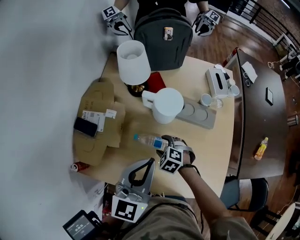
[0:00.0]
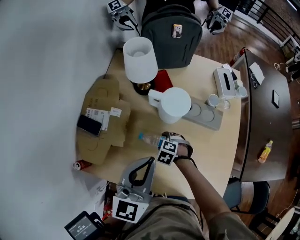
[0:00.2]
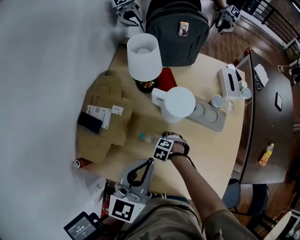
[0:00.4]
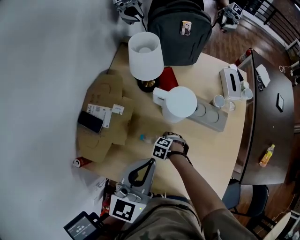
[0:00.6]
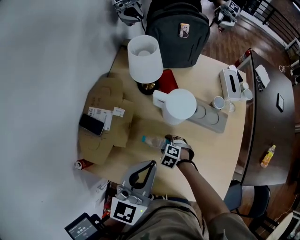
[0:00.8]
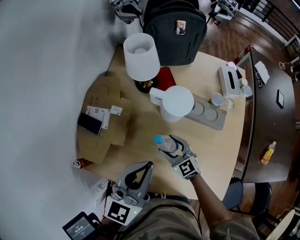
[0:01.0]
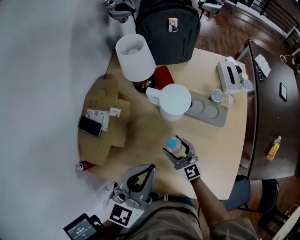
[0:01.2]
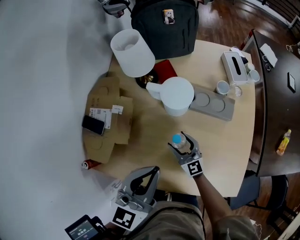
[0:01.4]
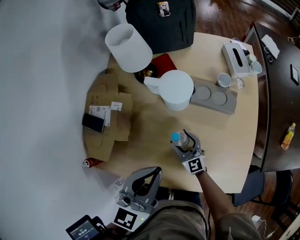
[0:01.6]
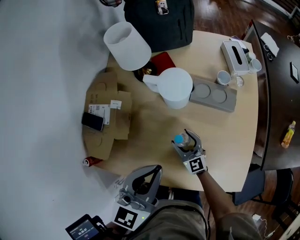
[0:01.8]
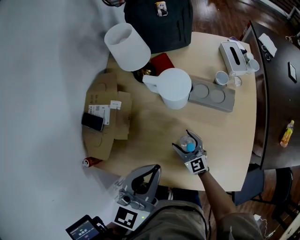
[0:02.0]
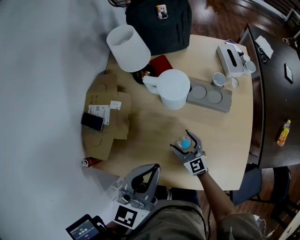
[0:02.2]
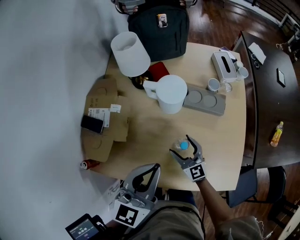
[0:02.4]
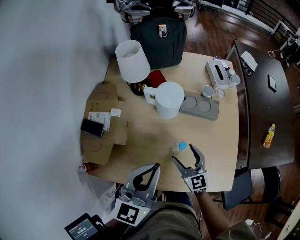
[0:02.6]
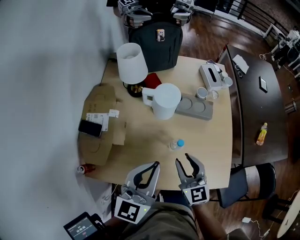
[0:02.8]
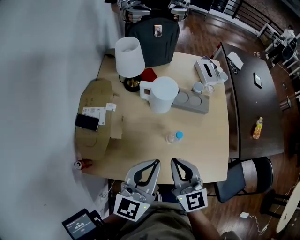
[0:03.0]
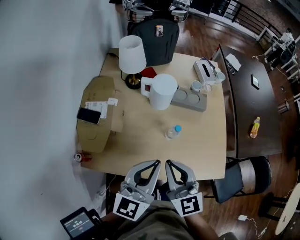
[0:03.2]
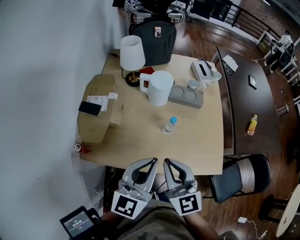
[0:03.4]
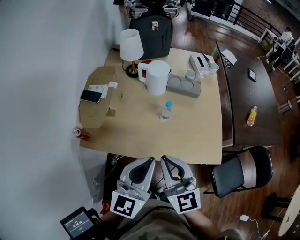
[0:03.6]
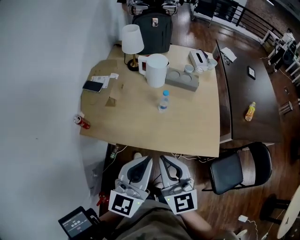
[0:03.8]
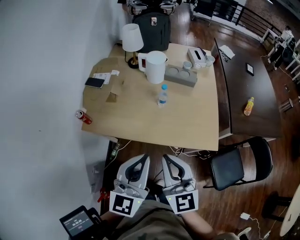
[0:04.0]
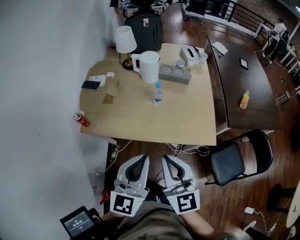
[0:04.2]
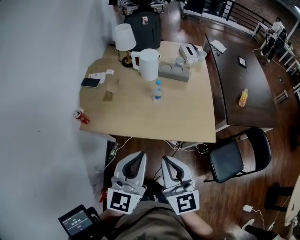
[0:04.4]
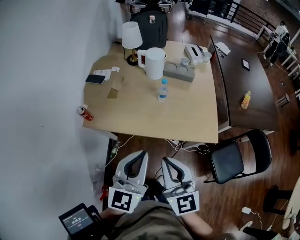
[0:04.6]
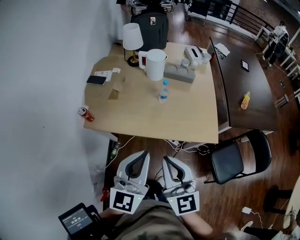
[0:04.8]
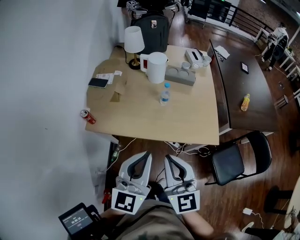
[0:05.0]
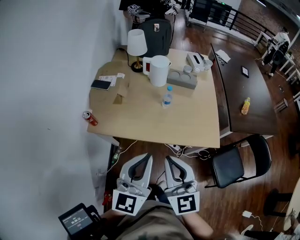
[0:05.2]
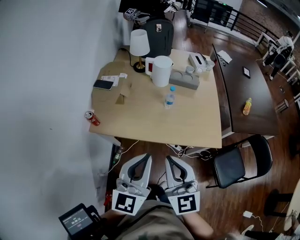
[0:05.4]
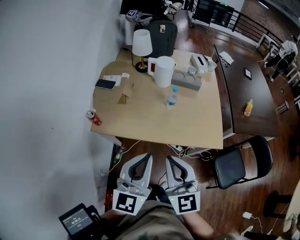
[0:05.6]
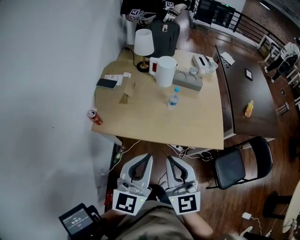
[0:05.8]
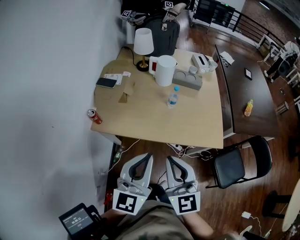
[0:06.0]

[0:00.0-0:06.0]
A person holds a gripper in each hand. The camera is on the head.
0:00.0 to 0:01.6: The right gripper goes up and down, roughly 20 cm each way, reversing 2 times, and tilts its fingers about 50 degrees upward.
0:01.6 to 0:03.0: The right gripper is displaced upward and backward by some 30 cm, and closes; the left gripper shifts about 5 cm backward.
0:03.0 to 0:04.4: Both grippers travel together backward, about 30 cm.
0:04.4 to 0:06.0: The grippers both shift to the left by about 10 cm.

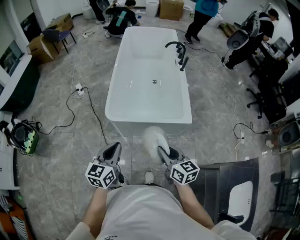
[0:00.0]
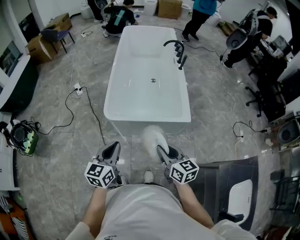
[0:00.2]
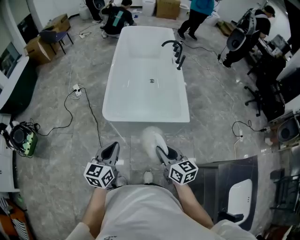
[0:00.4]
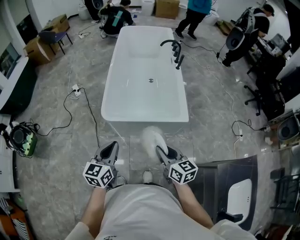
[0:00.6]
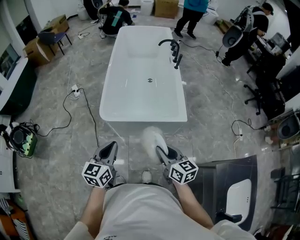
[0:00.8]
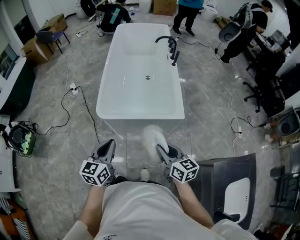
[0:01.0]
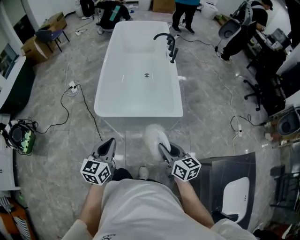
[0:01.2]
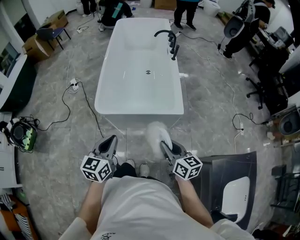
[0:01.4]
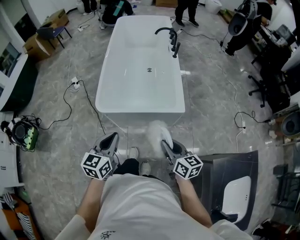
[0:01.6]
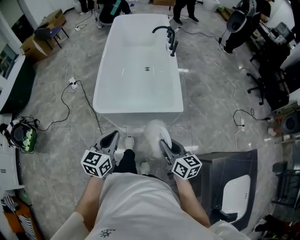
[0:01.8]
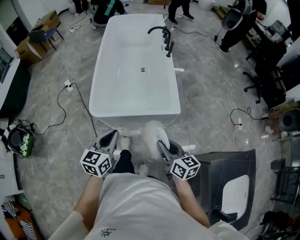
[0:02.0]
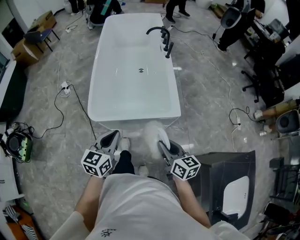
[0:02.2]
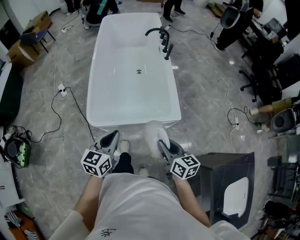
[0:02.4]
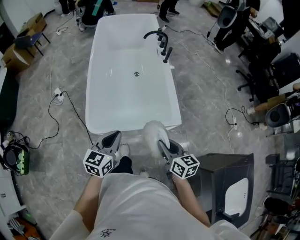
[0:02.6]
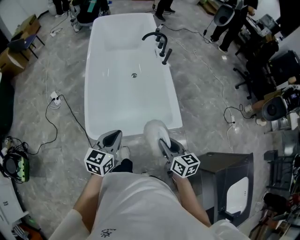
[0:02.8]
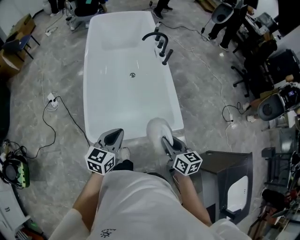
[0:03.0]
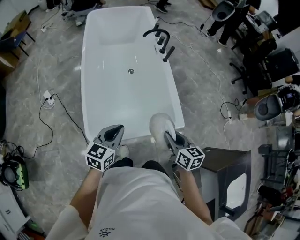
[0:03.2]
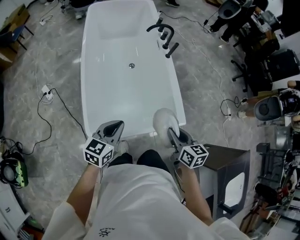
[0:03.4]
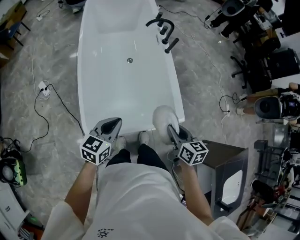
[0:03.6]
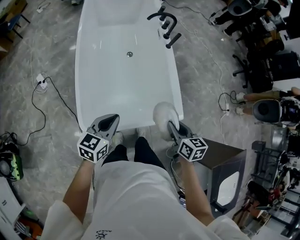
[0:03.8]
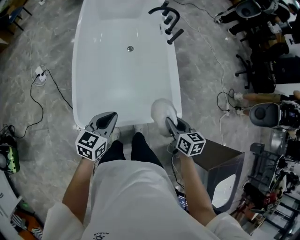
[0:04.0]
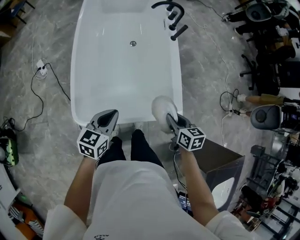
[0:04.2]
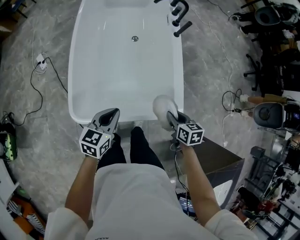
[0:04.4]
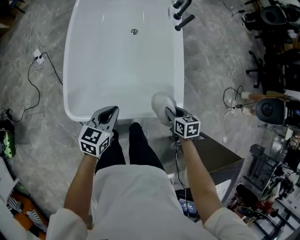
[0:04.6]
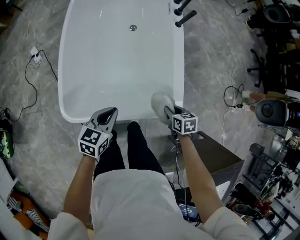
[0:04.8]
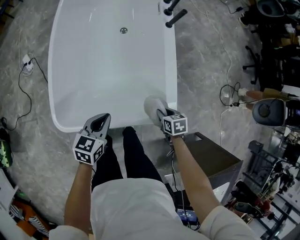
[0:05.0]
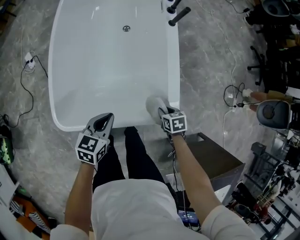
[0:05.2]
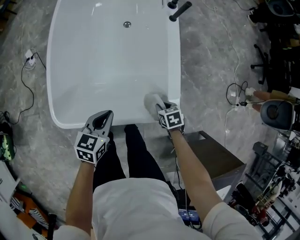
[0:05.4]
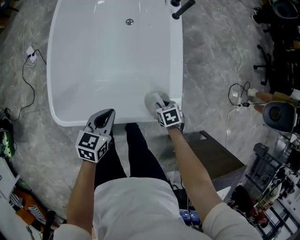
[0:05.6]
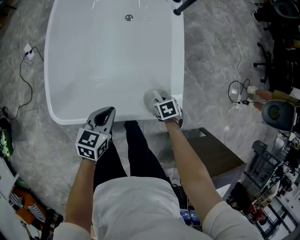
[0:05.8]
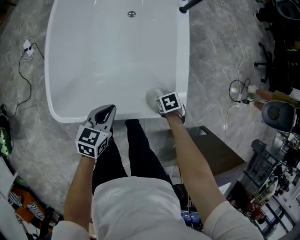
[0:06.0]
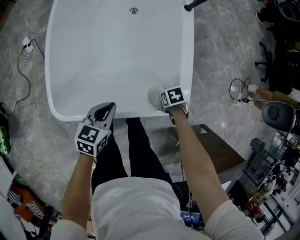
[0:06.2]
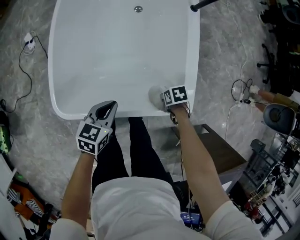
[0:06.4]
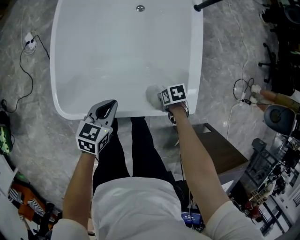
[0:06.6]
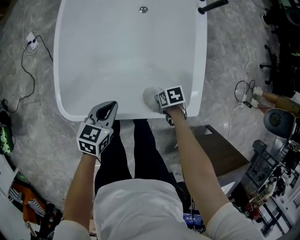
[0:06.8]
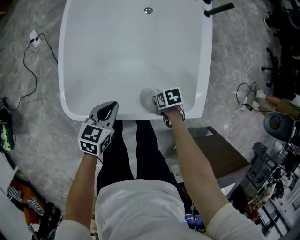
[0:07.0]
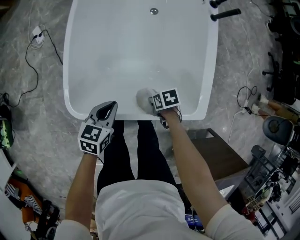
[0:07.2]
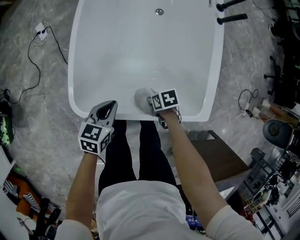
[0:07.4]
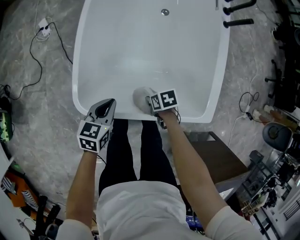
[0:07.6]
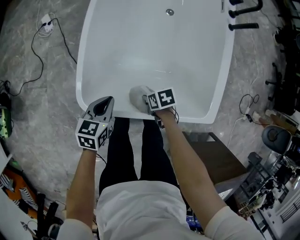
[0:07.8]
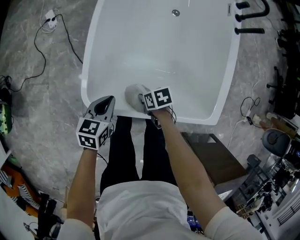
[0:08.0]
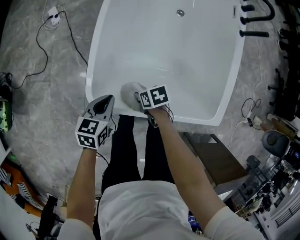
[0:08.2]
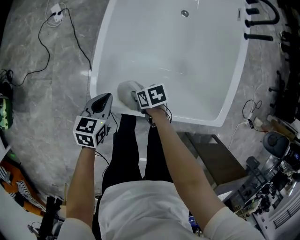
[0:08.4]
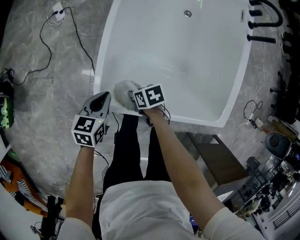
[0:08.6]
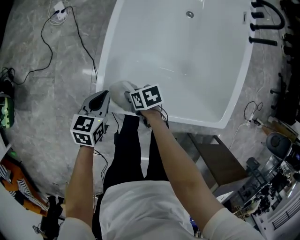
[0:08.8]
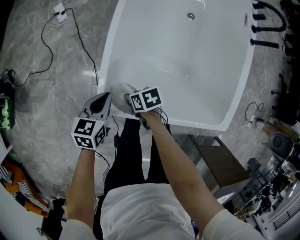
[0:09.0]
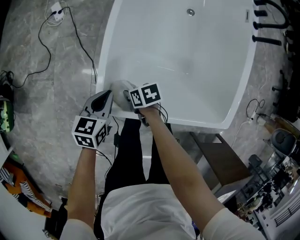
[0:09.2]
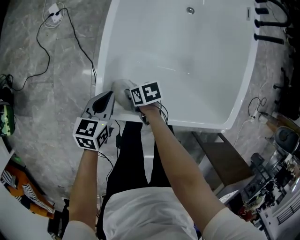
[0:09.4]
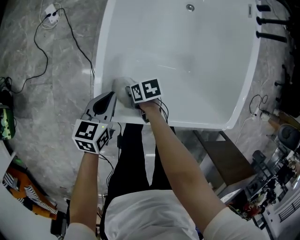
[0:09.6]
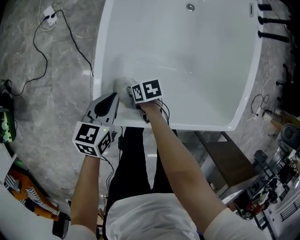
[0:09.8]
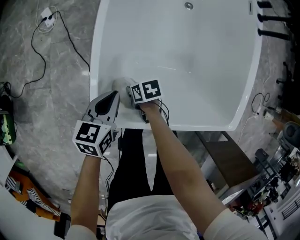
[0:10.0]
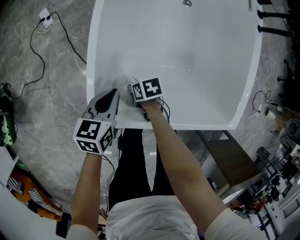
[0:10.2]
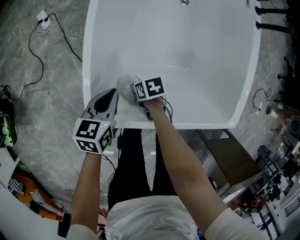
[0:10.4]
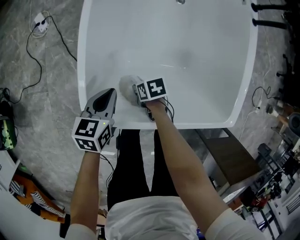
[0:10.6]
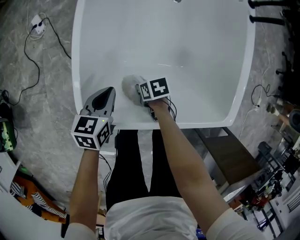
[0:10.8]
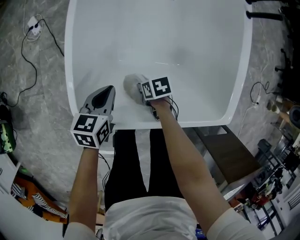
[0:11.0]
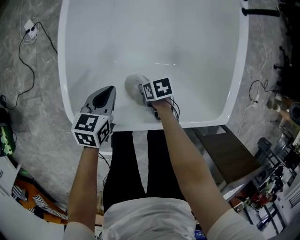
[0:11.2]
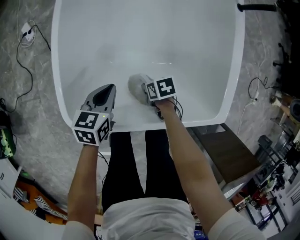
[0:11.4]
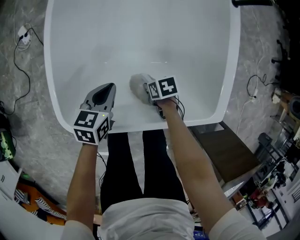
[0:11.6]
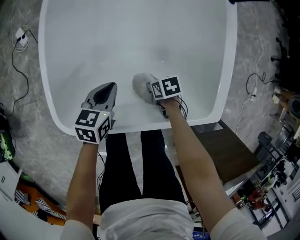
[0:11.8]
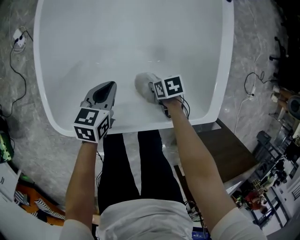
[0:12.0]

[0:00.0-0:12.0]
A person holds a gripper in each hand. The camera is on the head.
0:00.0 to 0:01.6: The left gripper ends up about 10 cm from where it was.
0:01.6 to 0:03.0: The left gripper changes place by approximately 25 cm.
0:03.0 to 0:04.4: The left gripper travels downward by some 10 cm.
0:04.4 to 0:06.0: The left gripper travels downward by about 15 cm.
0:06.0 to 0:07.6: The left gripper ends up roughly 20 cm from where it was.
0:07.6 to 0:09.0: The left gripper moves about 15 cm.
0:09.0 to 0:10.4: The left gripper changes place by about 10 cm.
0:10.4 to 0:12.0: The left gripper ends up some 20 cm from where it was.

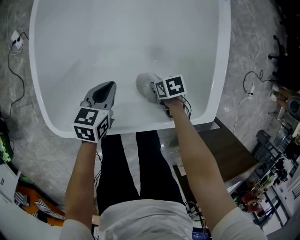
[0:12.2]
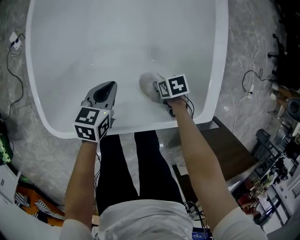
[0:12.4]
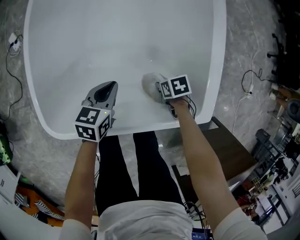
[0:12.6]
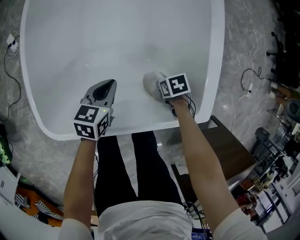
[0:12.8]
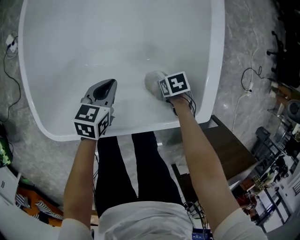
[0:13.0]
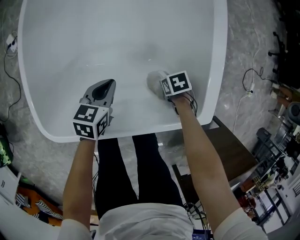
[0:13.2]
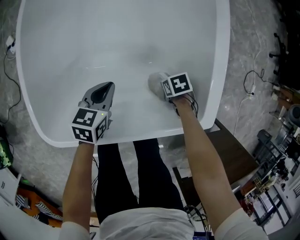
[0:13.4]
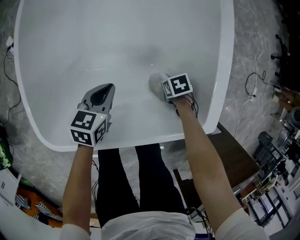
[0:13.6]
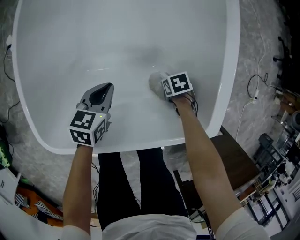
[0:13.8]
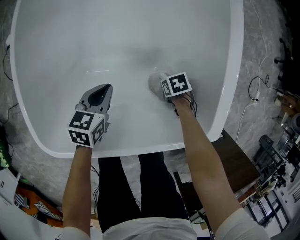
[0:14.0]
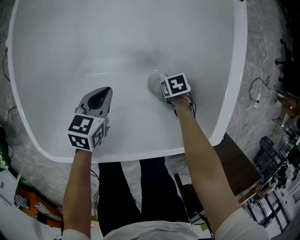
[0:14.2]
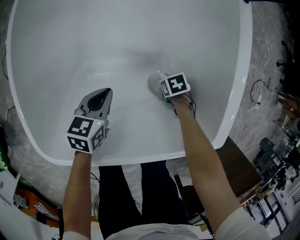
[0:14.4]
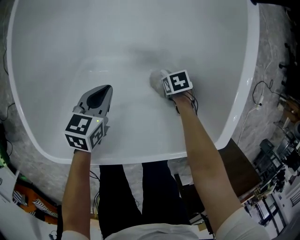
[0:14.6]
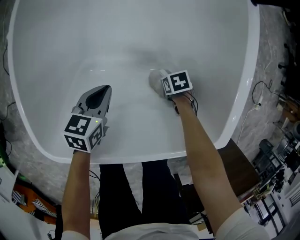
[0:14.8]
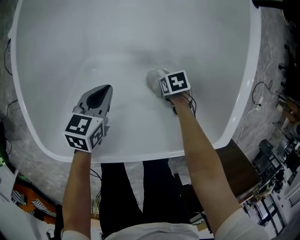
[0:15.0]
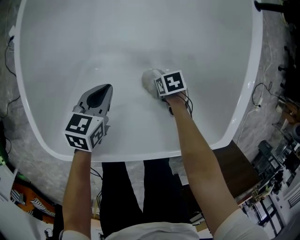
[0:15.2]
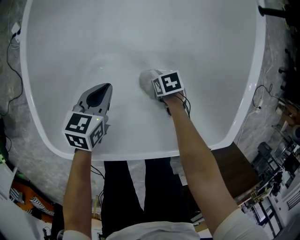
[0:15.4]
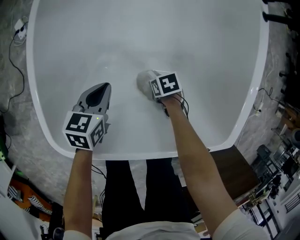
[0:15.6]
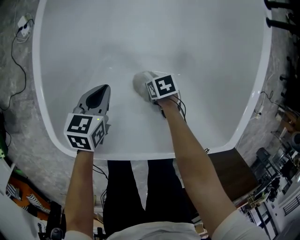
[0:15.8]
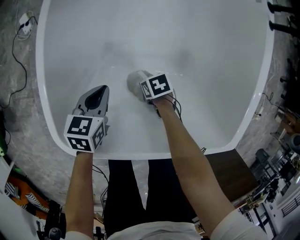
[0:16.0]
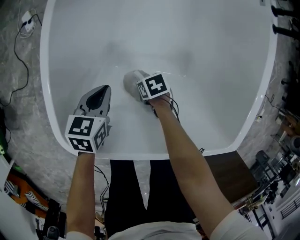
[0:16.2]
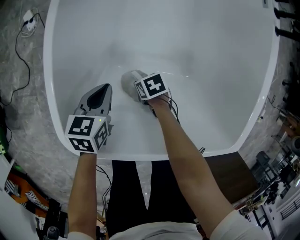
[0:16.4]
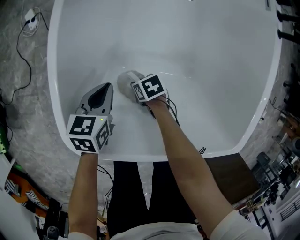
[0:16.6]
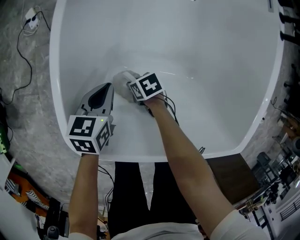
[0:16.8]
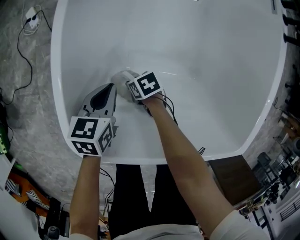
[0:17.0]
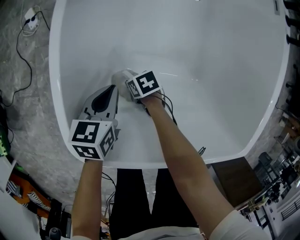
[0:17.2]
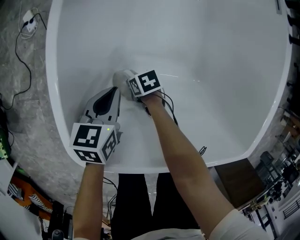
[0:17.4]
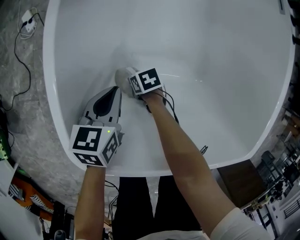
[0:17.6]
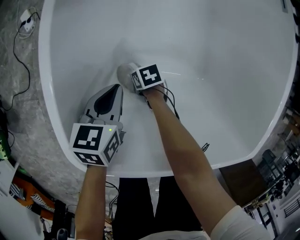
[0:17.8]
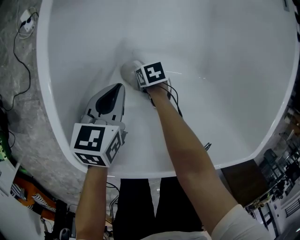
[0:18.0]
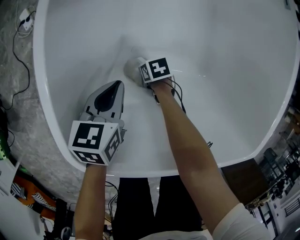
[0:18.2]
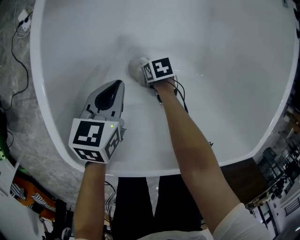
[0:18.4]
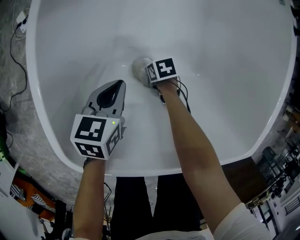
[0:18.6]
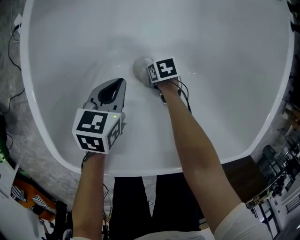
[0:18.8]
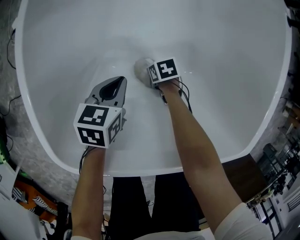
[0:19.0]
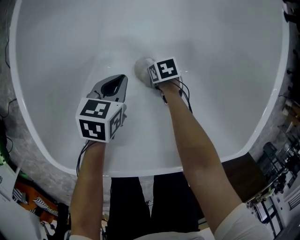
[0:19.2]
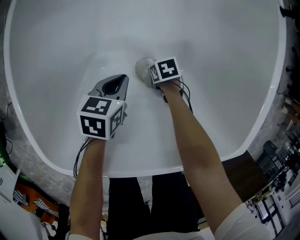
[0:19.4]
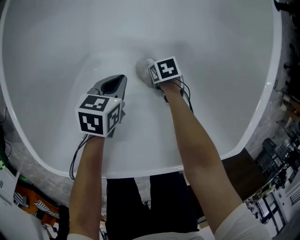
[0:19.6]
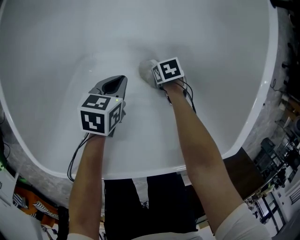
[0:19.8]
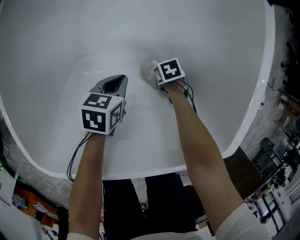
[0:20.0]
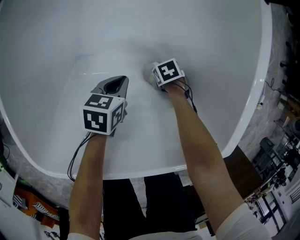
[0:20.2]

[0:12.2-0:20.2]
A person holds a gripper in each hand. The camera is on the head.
0:12.2 to 0:13.8: The left gripper shifts approximately 5 cm downward.
0:13.8 to 0:15.4: The left gripper shifts by about 10 cm.
0:15.4 to 0:17.0: The left gripper changes place by roughly 10 cm.
0:17.0 to 0:18.6: The left gripper changes place by about 5 cm.
0:18.6 to 0:20.2: The left gripper changes place by about 20 cm.
